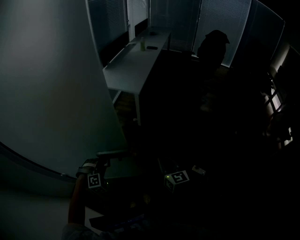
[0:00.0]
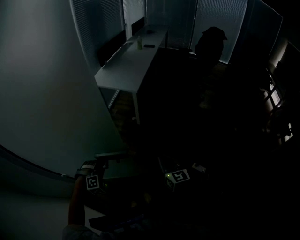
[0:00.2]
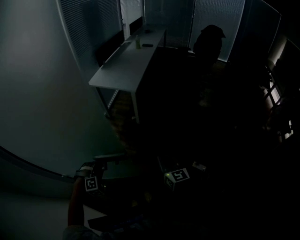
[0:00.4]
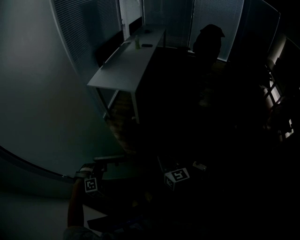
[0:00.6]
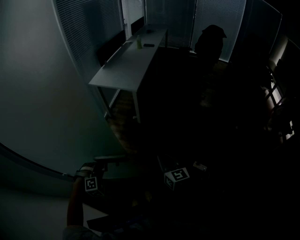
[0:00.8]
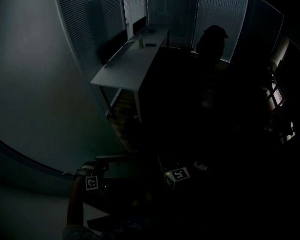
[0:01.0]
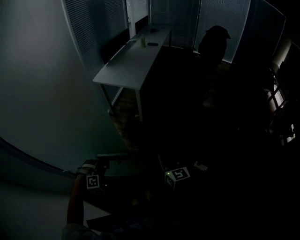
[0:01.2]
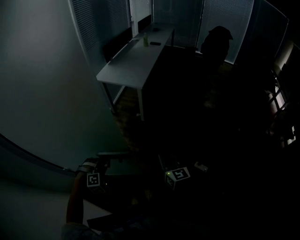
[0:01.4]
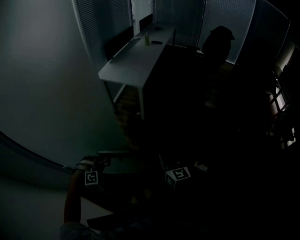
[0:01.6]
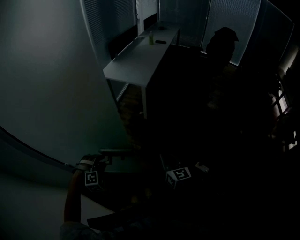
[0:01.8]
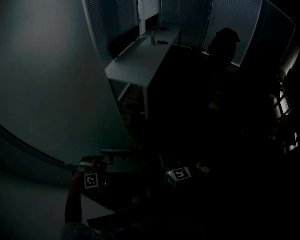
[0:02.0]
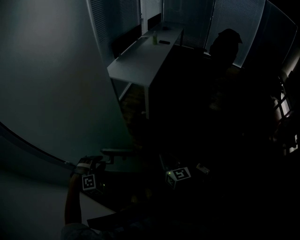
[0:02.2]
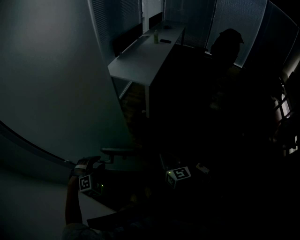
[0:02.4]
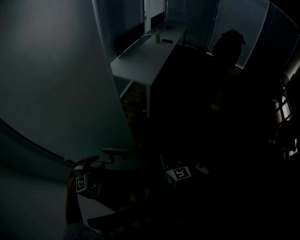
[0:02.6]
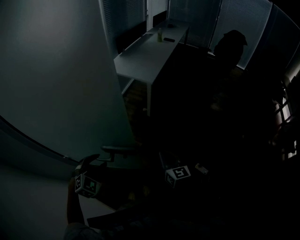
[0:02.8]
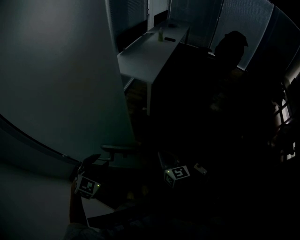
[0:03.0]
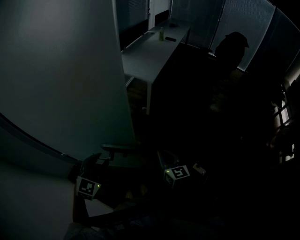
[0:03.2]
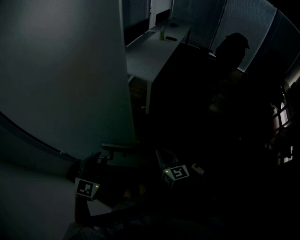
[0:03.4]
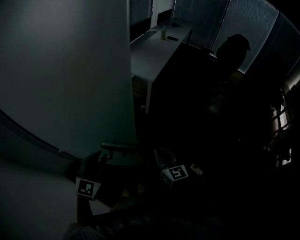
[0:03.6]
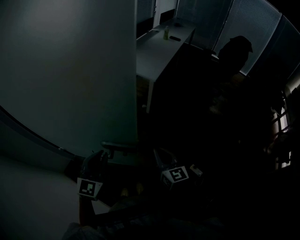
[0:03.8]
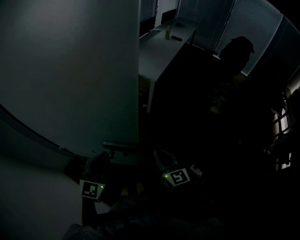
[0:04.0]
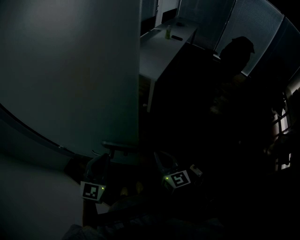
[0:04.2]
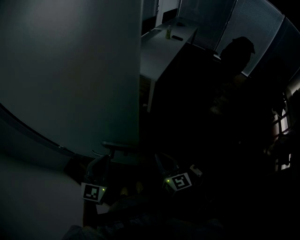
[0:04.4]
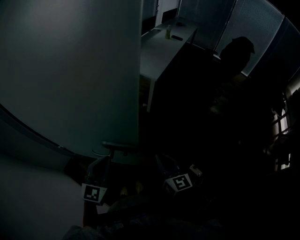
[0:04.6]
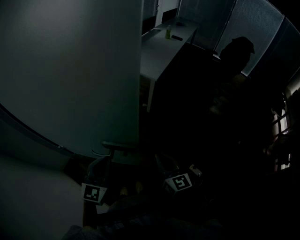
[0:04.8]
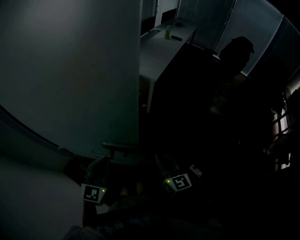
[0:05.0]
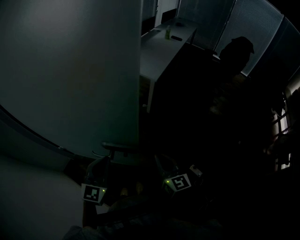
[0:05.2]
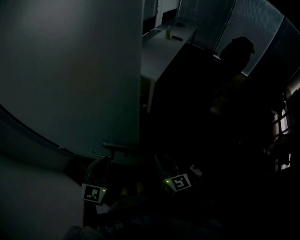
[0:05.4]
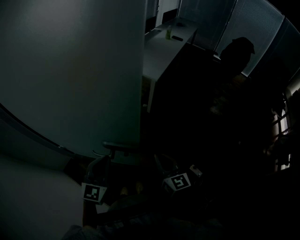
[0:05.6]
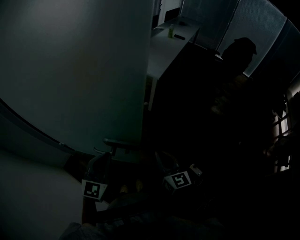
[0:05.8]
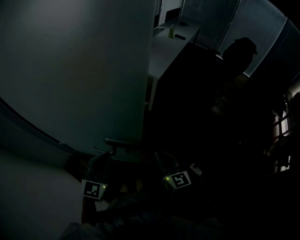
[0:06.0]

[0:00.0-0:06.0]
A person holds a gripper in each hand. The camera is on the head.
0.0 to 1.6 s: The left gripper opens up.
1.6 to 3.0 s: The left gripper goes approximately 10 cm upward, rolls counterclockwise, seen from behind, by roughly 40 degrees, and opens.
3.0 to 4.4 s: The left gripper changes its angle by some 30 degrees, and closes, while the right gripper travels upward by some 5 cm.
4.4 to 6.0 s: Both grippers stay put.

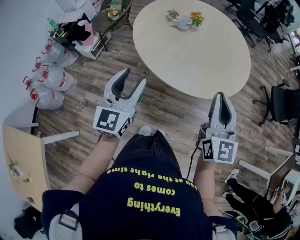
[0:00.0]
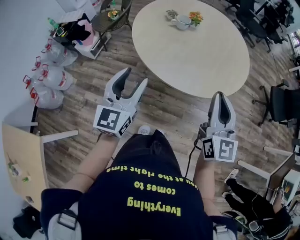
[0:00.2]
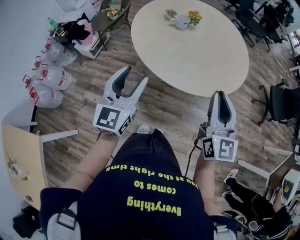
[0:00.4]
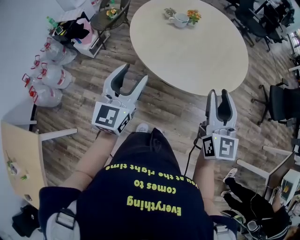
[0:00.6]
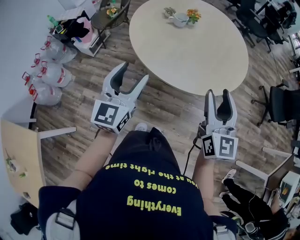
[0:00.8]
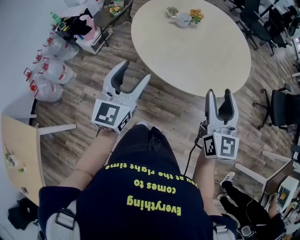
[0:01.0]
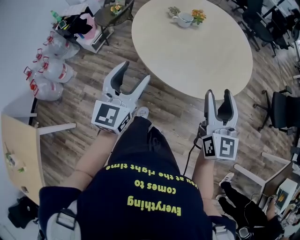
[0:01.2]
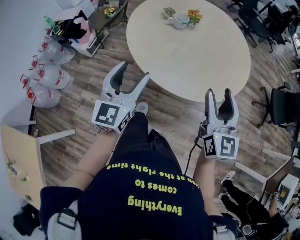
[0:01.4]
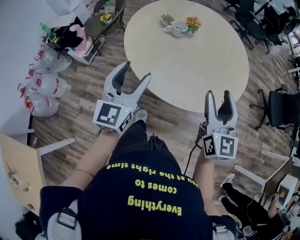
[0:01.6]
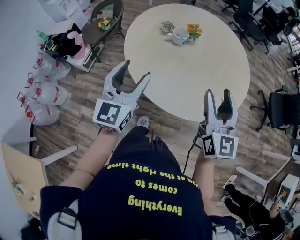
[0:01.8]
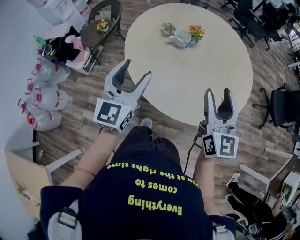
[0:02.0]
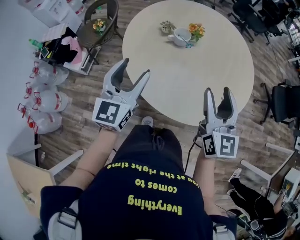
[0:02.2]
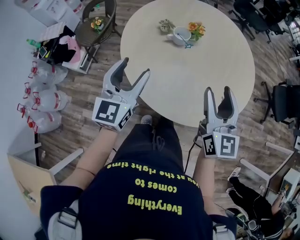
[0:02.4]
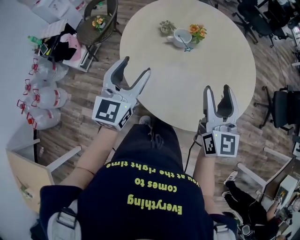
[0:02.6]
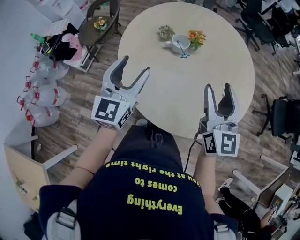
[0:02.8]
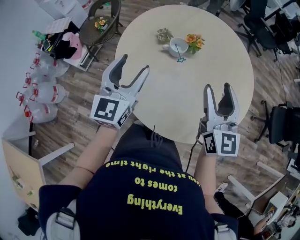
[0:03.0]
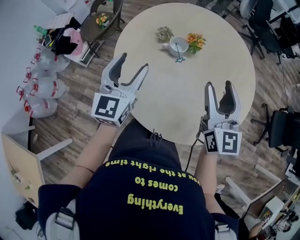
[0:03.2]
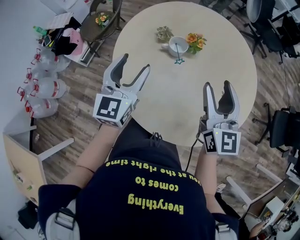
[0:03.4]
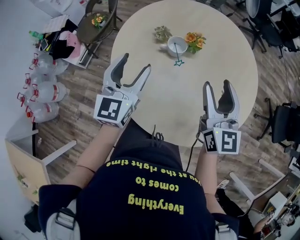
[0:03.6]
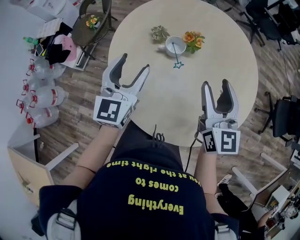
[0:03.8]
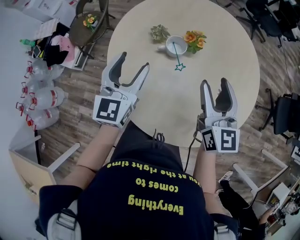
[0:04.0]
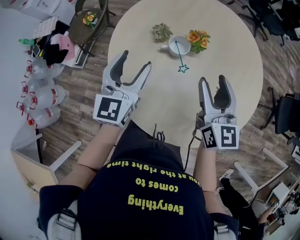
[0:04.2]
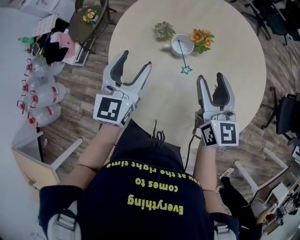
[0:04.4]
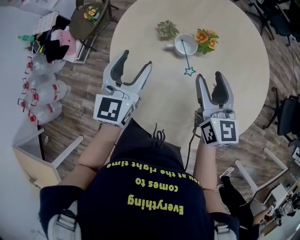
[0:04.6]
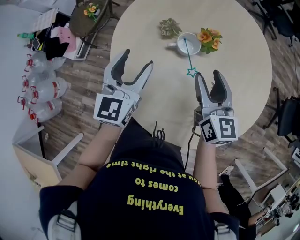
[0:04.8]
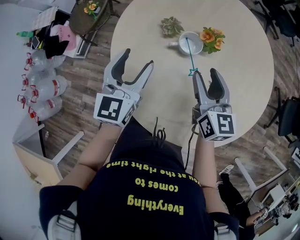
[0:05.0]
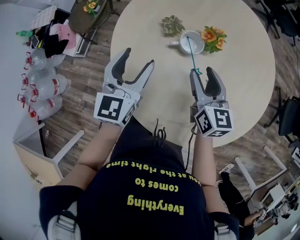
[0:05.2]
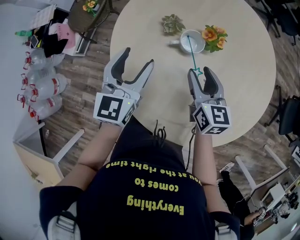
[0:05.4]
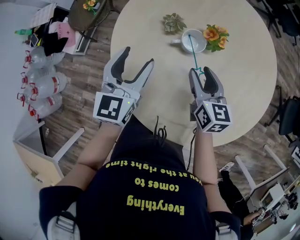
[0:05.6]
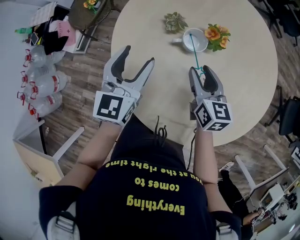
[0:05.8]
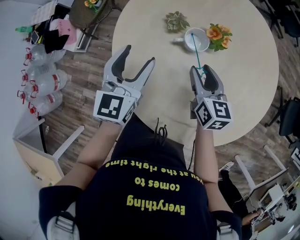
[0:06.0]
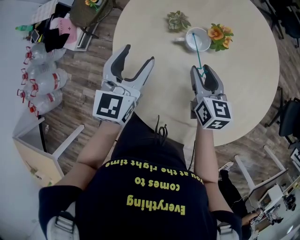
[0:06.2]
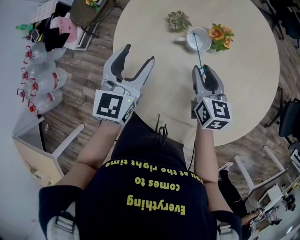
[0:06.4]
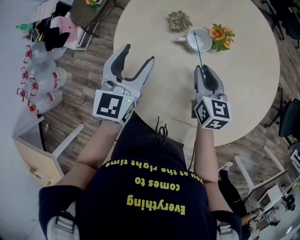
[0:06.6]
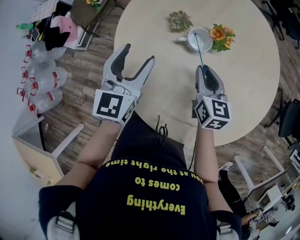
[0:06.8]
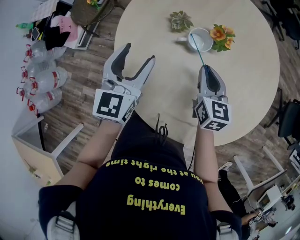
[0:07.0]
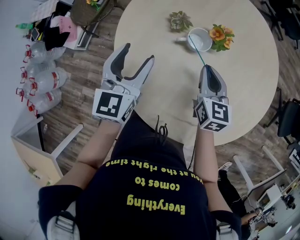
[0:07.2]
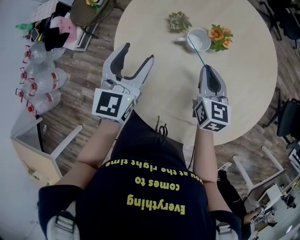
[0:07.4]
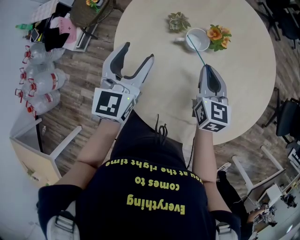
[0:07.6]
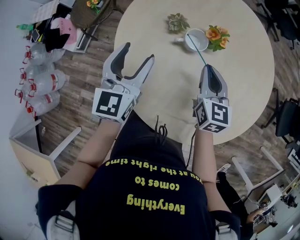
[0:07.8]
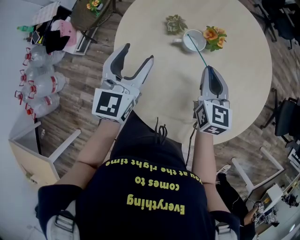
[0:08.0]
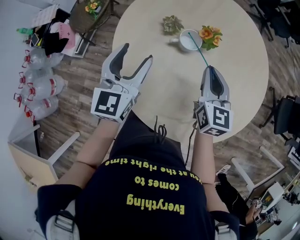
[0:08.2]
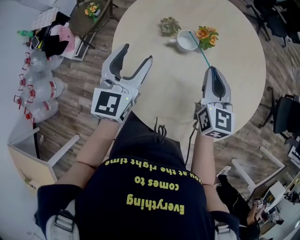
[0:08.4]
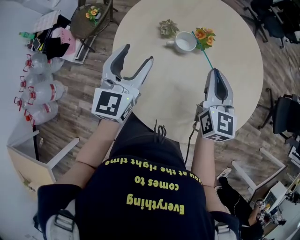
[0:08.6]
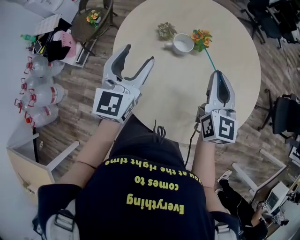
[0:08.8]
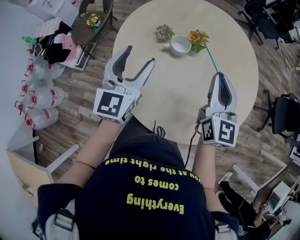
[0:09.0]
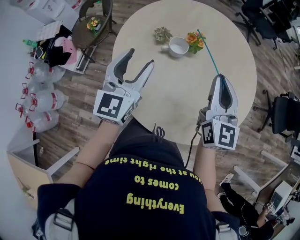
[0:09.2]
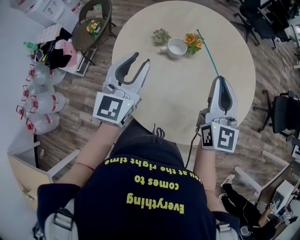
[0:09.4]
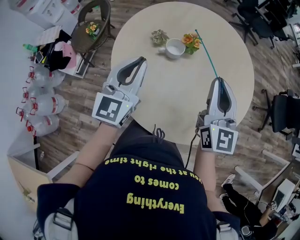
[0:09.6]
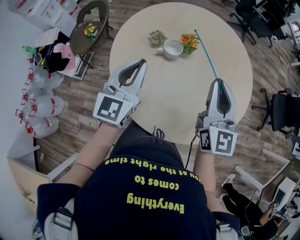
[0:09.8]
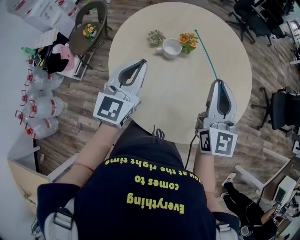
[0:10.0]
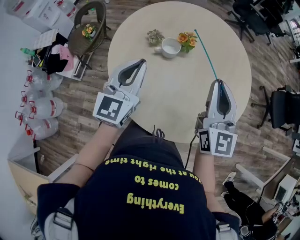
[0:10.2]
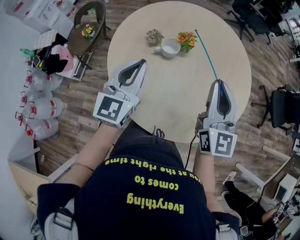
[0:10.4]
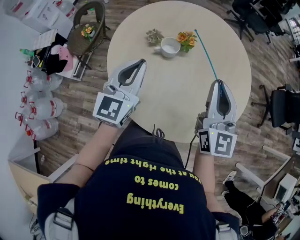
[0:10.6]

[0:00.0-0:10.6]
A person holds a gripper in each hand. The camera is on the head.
0.0 to 1.6 s: Both grippers travel together forward, about 10 cm. The right gripper opens its fingers.
1.6 to 3.0 s: The two grippers go about 20 cm forward.
3.0 to 4.6 s: Both grippers travel together forward and downward, some 15 cm.
4.6 to 6.0 s: The right gripper goes roughly 10 cm downward.
6.0 to 7.6 s: The right gripper closes up.
7.6 to 9.0 s: The left gripper is displaced upward by approximately 10 cm; the right gripper travels upward and backward by roughly 20 cm, and turns by roughly 20 degrees.
9.0 to 10.6 s: The left gripper changes place by roughly 5 cm, and closes up. The right gripper travels backward by some 5 cm.

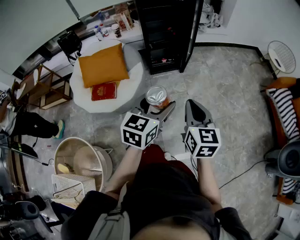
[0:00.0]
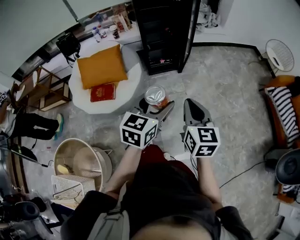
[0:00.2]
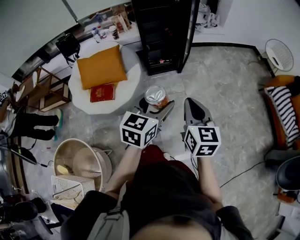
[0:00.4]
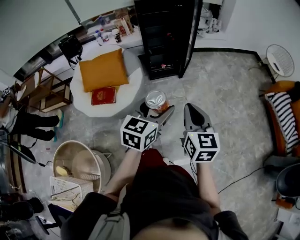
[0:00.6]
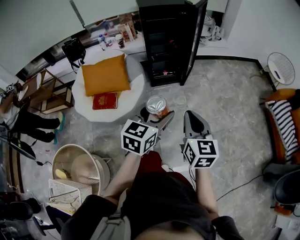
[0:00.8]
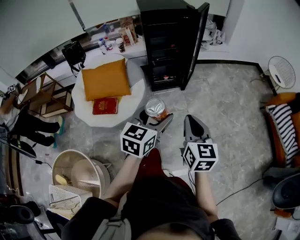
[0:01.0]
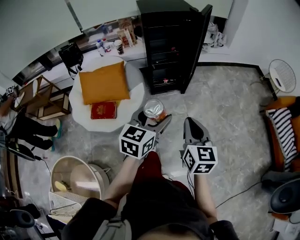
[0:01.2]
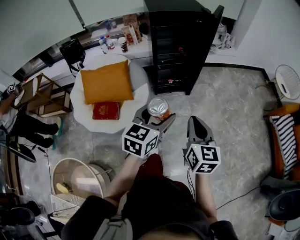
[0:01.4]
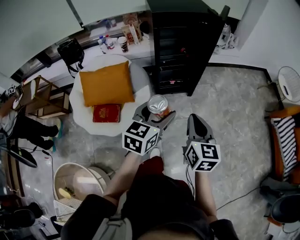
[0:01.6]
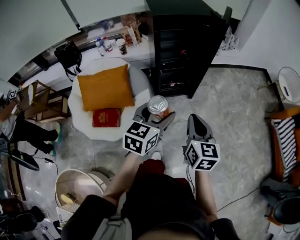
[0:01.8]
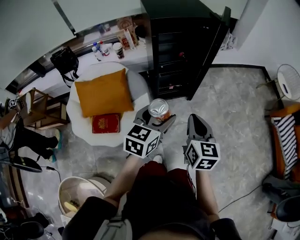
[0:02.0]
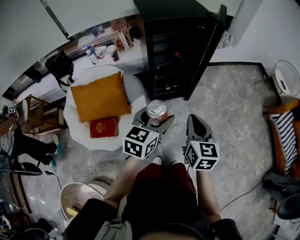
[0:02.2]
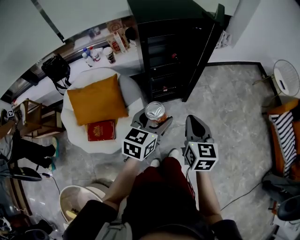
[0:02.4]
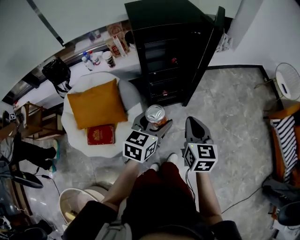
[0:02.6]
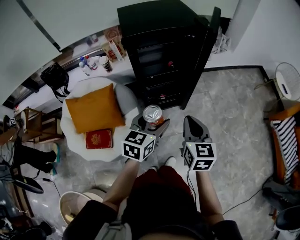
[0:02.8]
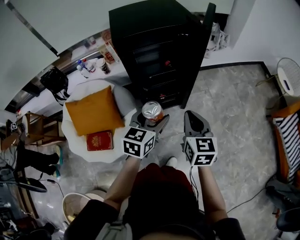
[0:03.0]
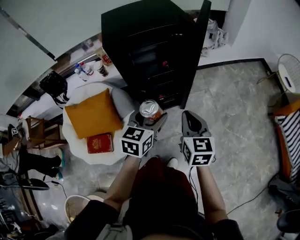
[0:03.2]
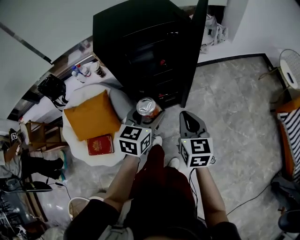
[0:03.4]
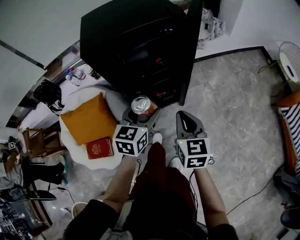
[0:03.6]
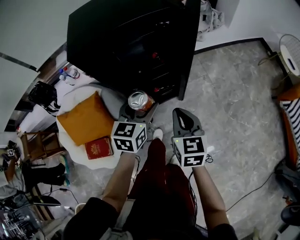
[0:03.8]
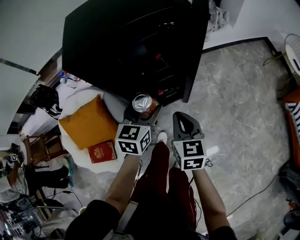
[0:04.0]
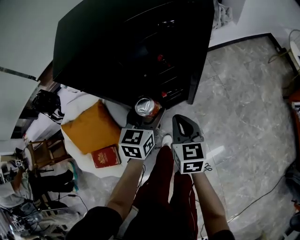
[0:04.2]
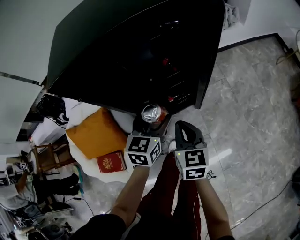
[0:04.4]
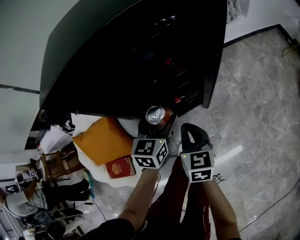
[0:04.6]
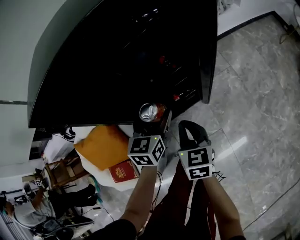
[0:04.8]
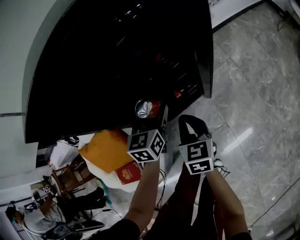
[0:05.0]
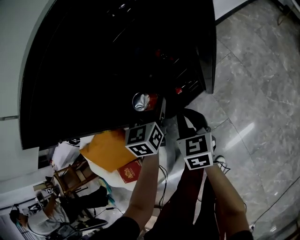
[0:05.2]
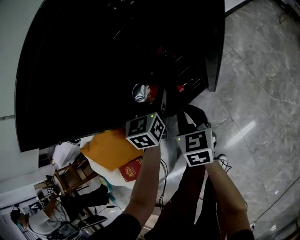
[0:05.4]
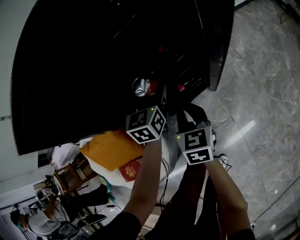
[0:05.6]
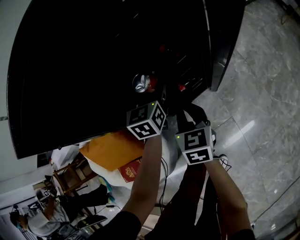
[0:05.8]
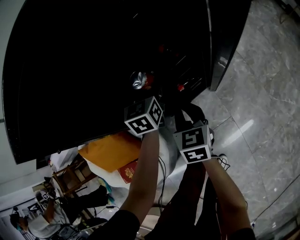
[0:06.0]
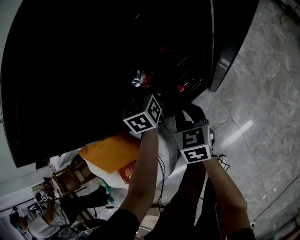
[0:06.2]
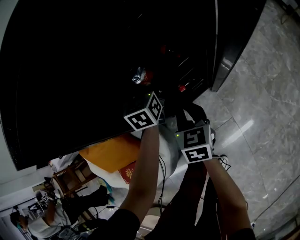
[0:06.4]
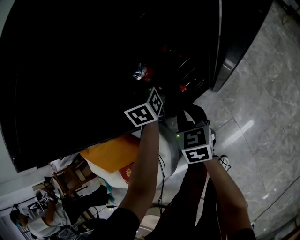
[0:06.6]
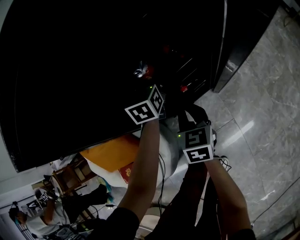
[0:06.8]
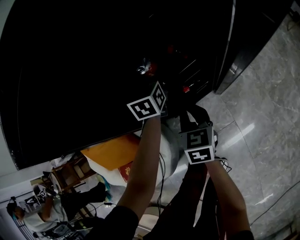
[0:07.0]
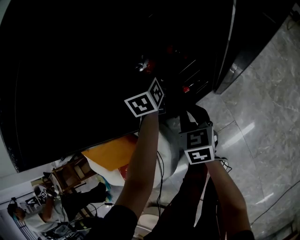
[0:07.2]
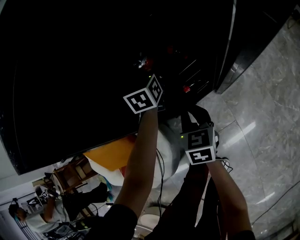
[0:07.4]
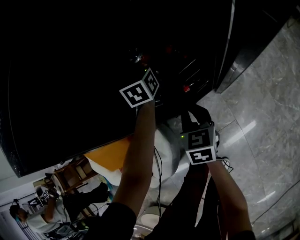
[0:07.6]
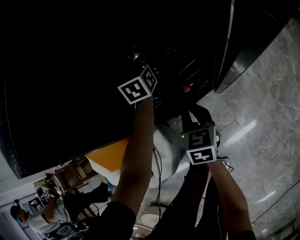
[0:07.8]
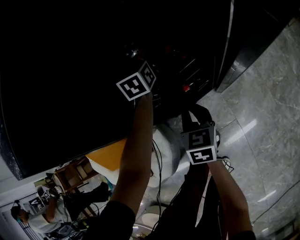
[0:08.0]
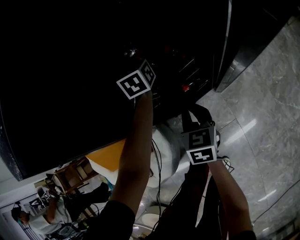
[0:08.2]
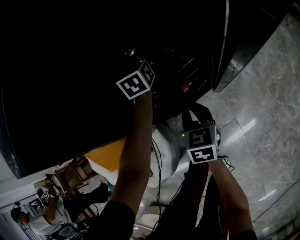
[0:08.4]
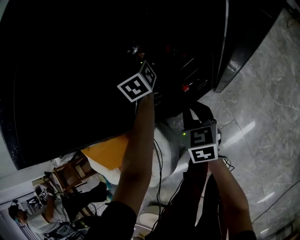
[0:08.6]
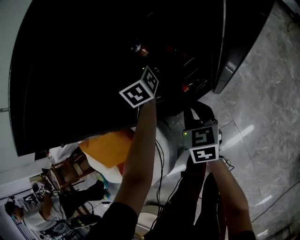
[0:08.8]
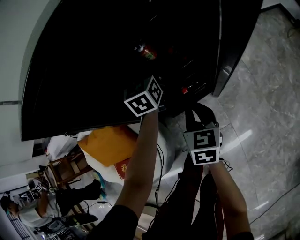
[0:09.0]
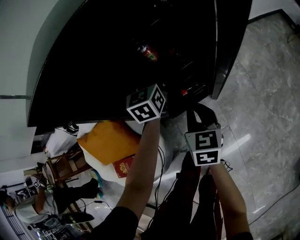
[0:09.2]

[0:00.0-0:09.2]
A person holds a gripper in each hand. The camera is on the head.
0.0 to 1.6 s: Both grippers travel together forward and to the left, roughly 25 cm.
1.6 to 3.0 s: Both grippers move forward, some 25 cm.
3.0 to 4.6 s: The left gripper shifts about 30 cm forward and downward, while the right gripper shifts some 25 cm downward and forward.
4.6 to 6.2 s: The right gripper heads forward, downward and to the left, covering roughly 15 cm. The left gripper moves forward and downward, some 15 cm.
6.2 to 7.6 s: The left gripper travels forward by about 10 cm.
7.6 to 9.2 s: The left gripper moves backward and upward, some 10 cm, while the right gripper heads upward, covering about 5 cm.
